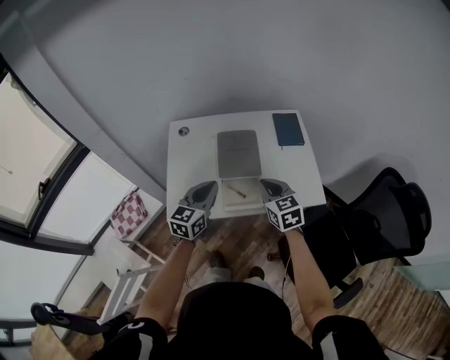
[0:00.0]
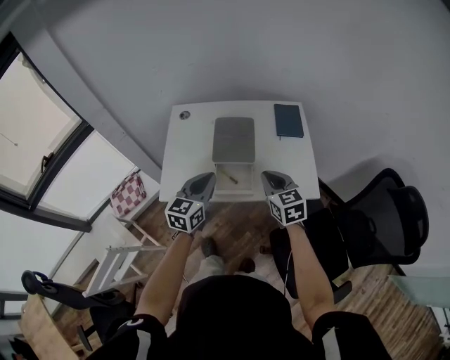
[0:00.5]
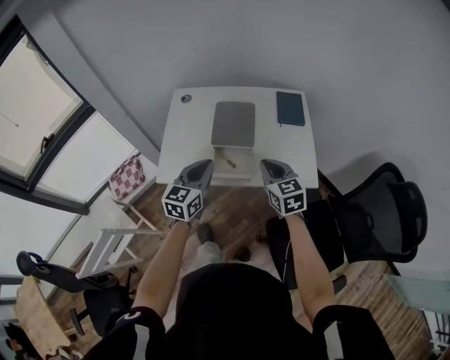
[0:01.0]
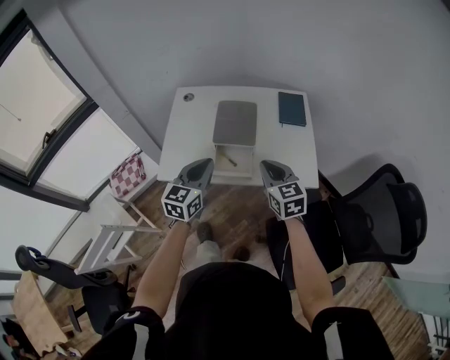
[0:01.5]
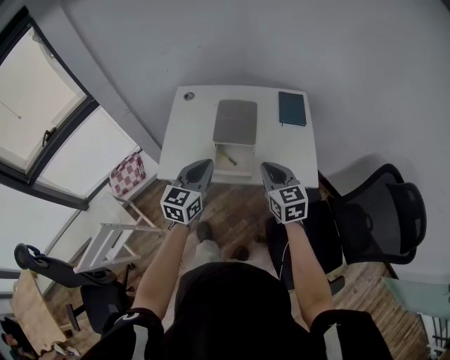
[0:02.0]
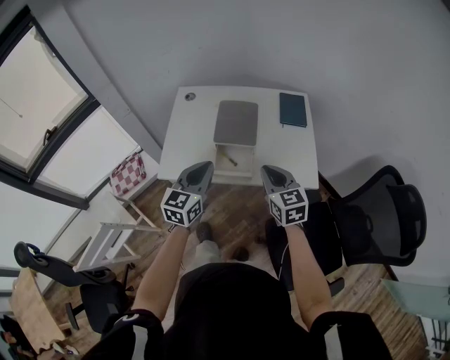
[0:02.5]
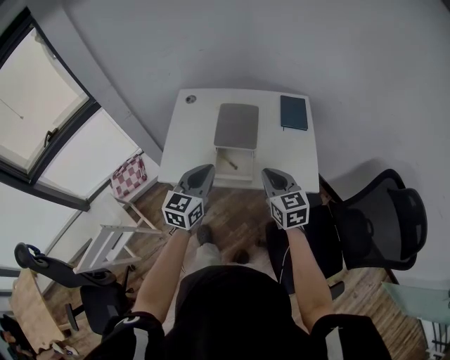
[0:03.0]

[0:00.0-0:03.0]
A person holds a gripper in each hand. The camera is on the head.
0:00.0 to 0:01.5: The left gripper goes some 10 cm backward, while the right gripper goes about 10 cm backward and to the right.
0:01.5 to 0:03.0: The grippers move only a little.

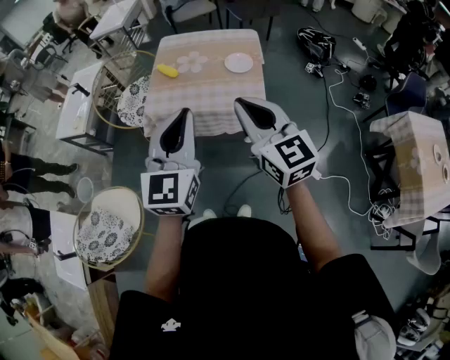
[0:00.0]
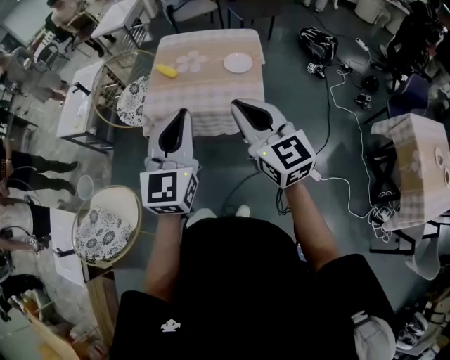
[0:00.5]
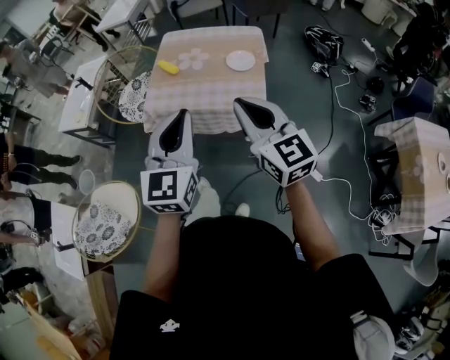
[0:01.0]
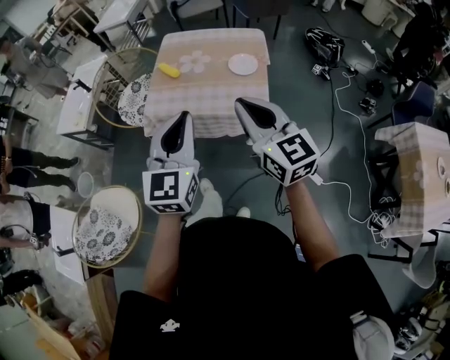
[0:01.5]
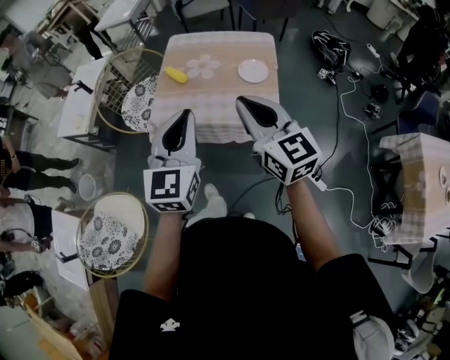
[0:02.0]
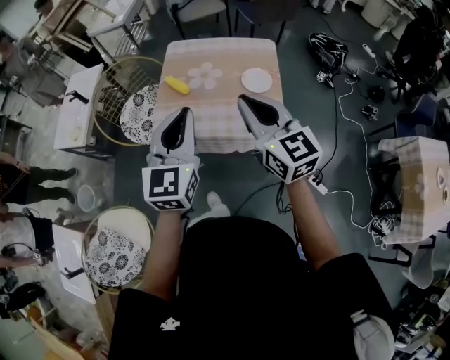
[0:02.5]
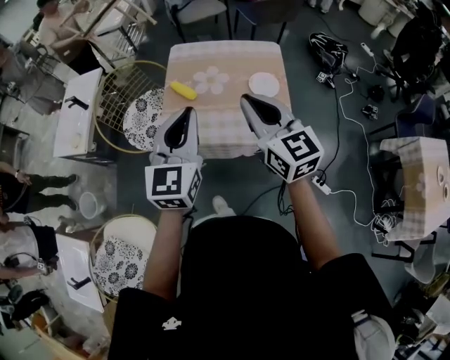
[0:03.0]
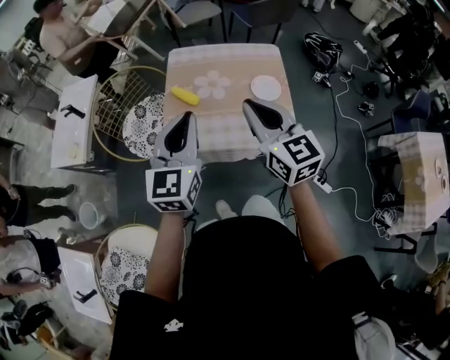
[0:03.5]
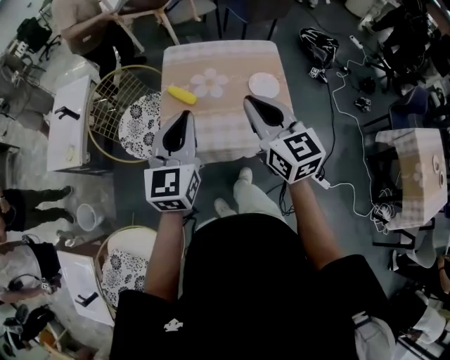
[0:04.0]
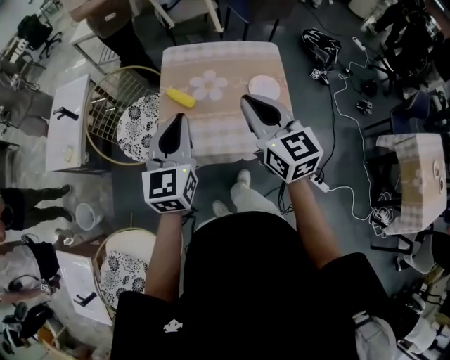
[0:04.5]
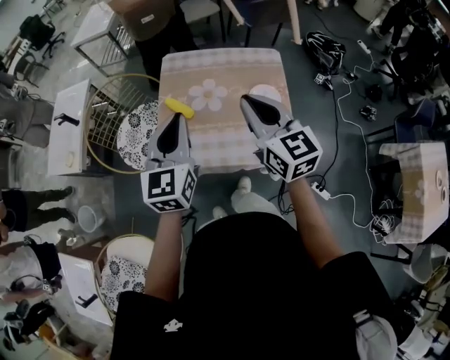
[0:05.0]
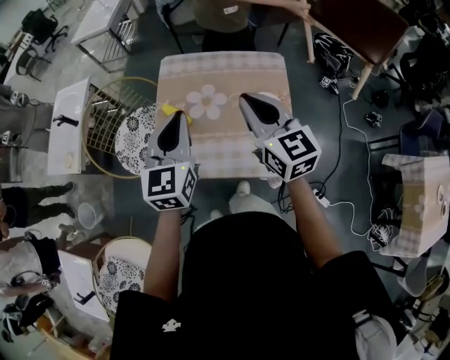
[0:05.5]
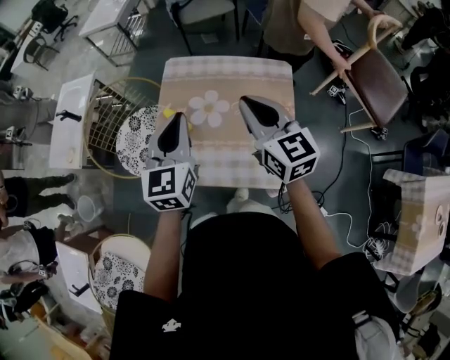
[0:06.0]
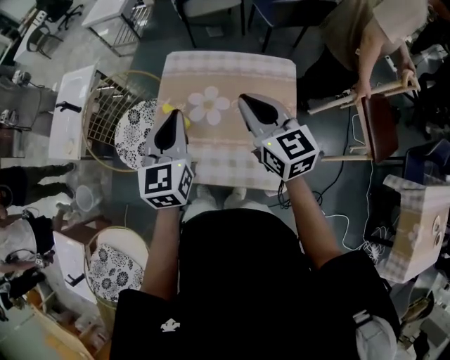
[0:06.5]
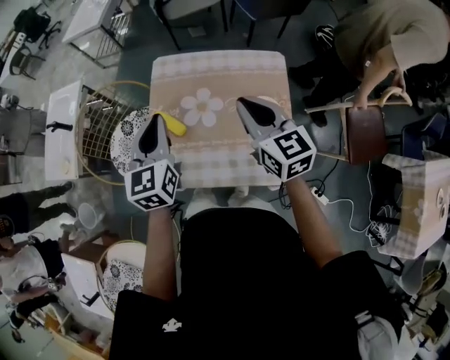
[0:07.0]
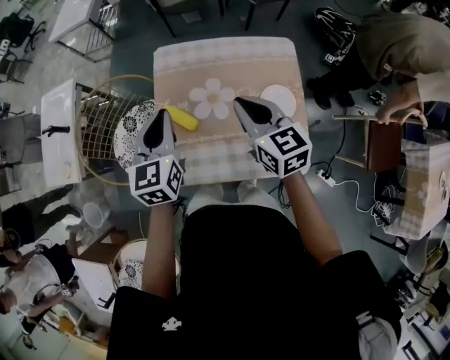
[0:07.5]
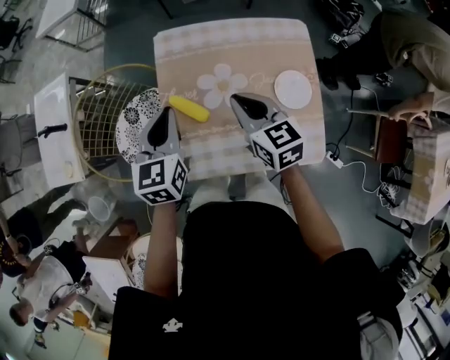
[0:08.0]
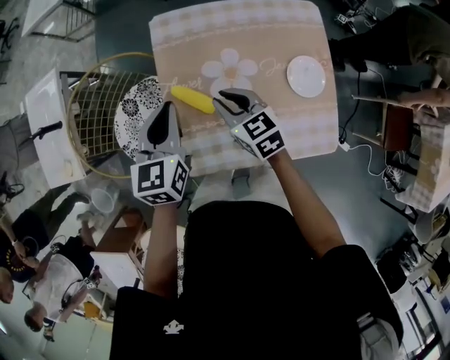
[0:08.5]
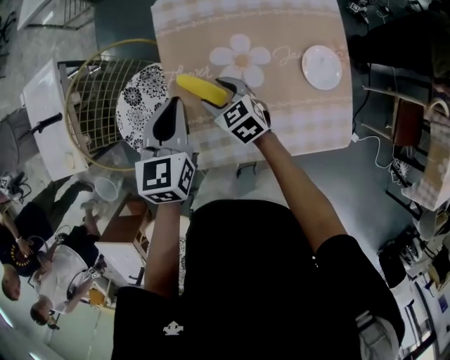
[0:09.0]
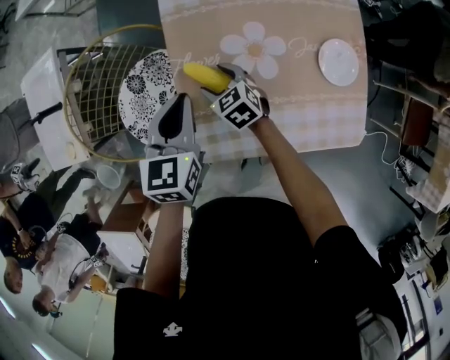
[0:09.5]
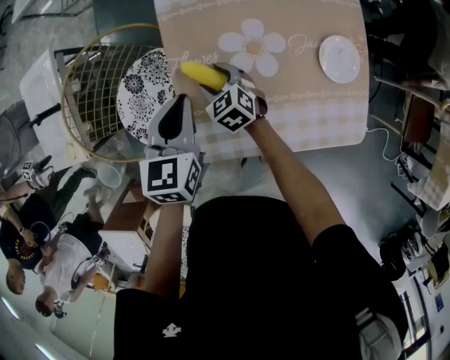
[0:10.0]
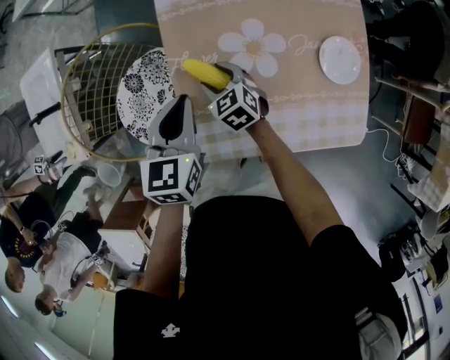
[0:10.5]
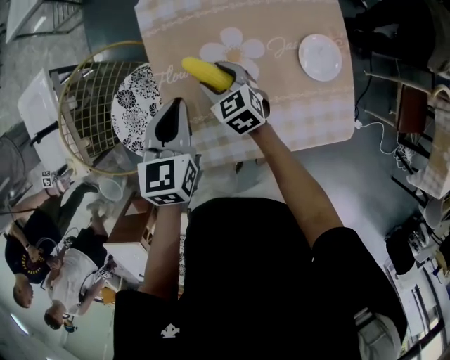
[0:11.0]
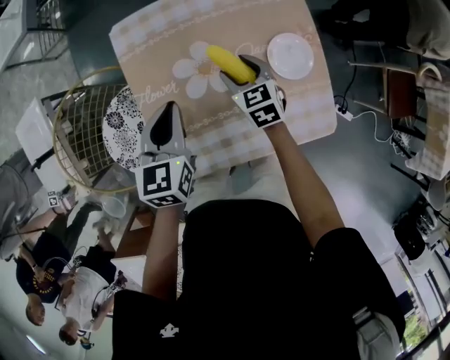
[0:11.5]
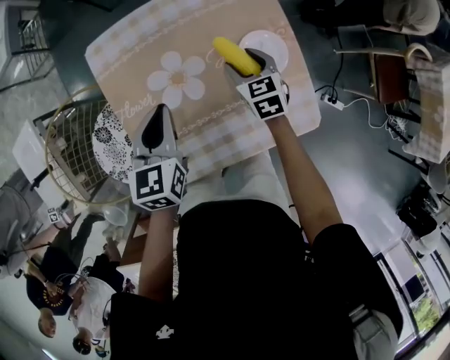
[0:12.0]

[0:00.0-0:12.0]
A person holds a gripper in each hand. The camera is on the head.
0:00.0 to 0:02.0: The two grippers go approximately 10 cm forward.
0:02.0 to 0:04.0: Both grippers move forward and to the left, about 20 cm.
0:04.0 to 0:06.0: Both grippers move forward and to the right, roughly 20 cm.
0:06.0 to 0:08.0: The left gripper heads downward, forward and to the left, covering approximately 20 cm. The right gripper heads downward, to the left and forward, covering roughly 20 cm, and turns by approximately 20 degrees.
0:08.0 to 0:10.0: The left gripper travels downward by some 10 cm, while the right gripper heads downward and to the left, covering approximately 30 cm, swivels approximately 30 degrees, and opens.
0:10.0 to 0:12.0: The left gripper travels to the right by roughly 15 cm, while the right gripper moves to the right, some 30 cm, and turns by approximately 30 degrees.

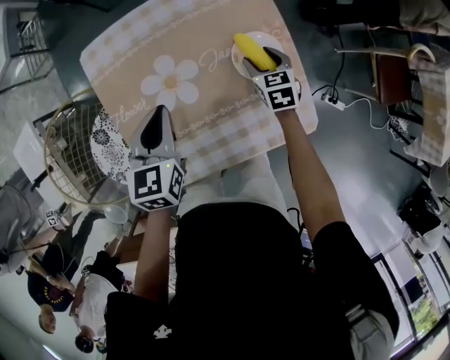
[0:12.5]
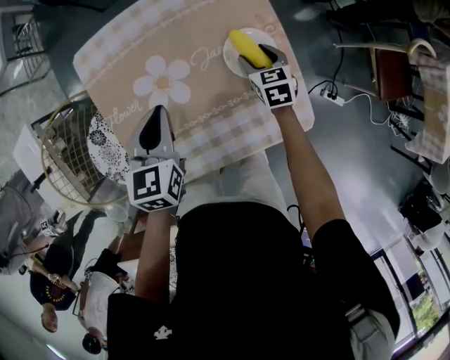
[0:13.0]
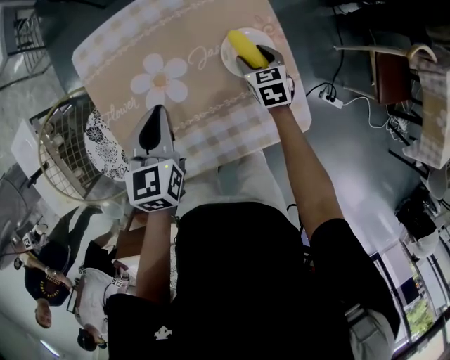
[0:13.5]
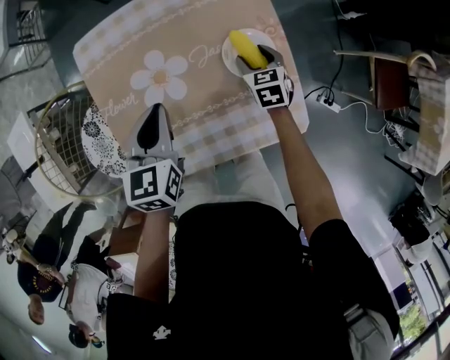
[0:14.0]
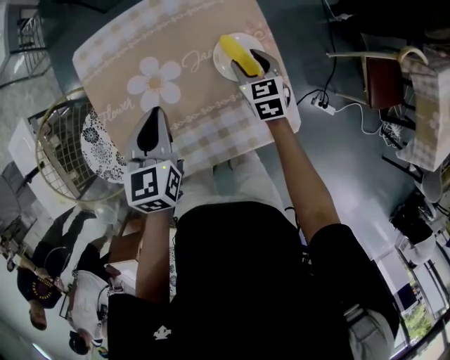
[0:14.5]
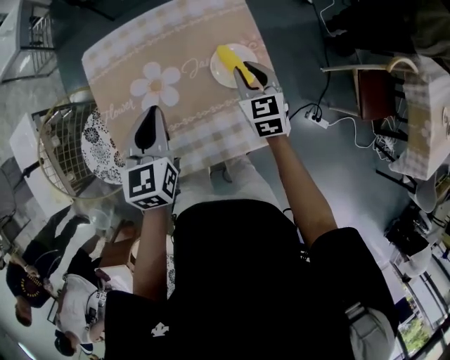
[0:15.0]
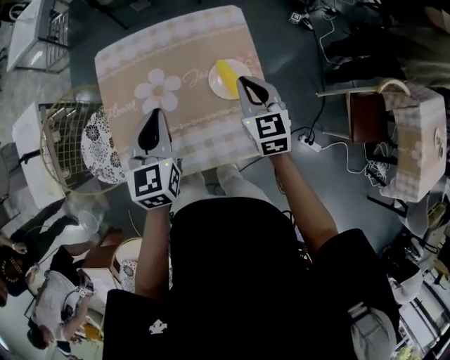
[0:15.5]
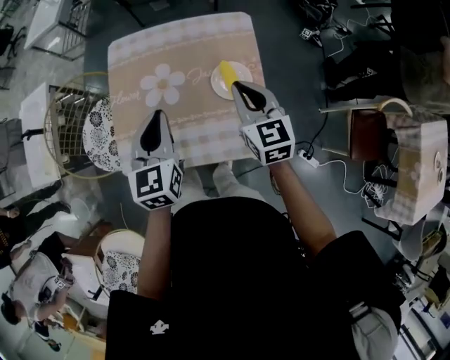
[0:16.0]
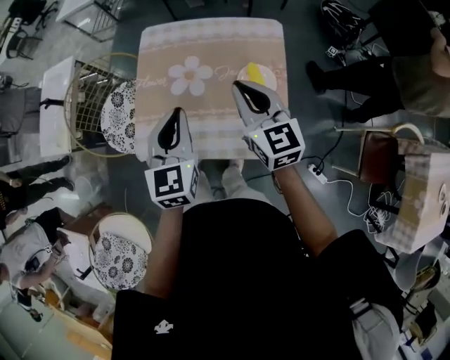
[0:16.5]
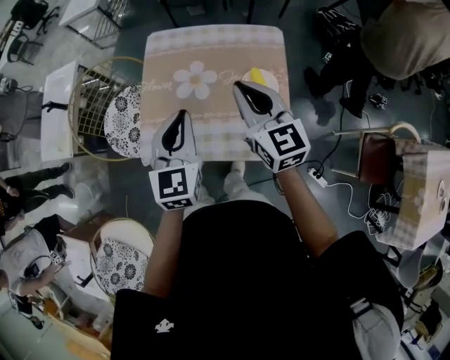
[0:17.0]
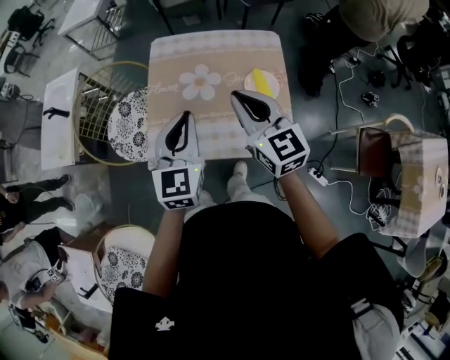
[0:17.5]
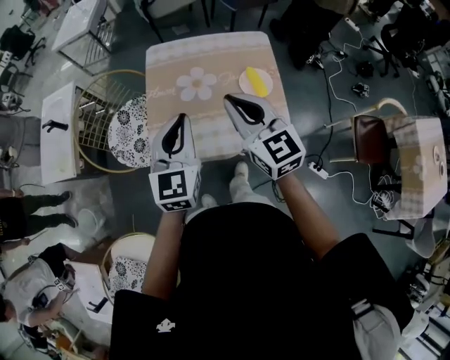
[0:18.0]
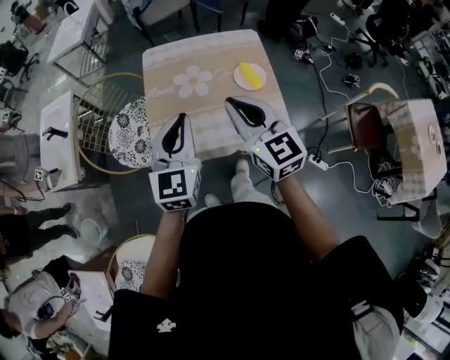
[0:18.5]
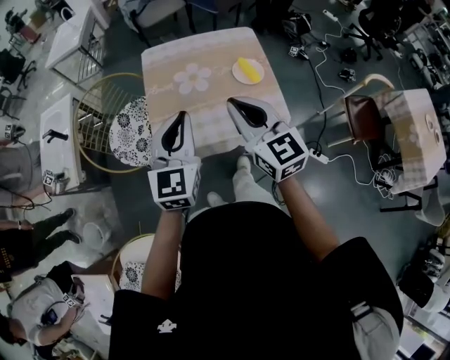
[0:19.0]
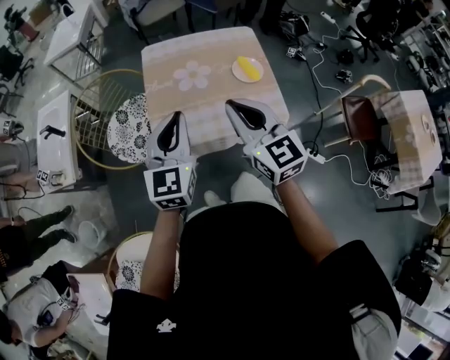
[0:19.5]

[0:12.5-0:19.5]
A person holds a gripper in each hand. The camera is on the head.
0:12.5 to 0:14.5: The grippers stay close to where they were, moving slightly.
0:14.5 to 0:16.0: The left gripper moves upward and backward, roughly 15 cm, and changes its angle by some 20 degrees. Meanwhile the right gripper travels upward by about 20 cm, rotates approximately 30 degrees, and closes its fingers.
0:16.0 to 0:17.5: The right gripper shifts some 20 cm to the left, upward and backward; the left gripper goes approximately 10 cm backward, to the left and upward.
0:17.5 to 0:19.5: The grippers both shift backward and to the left by approximately 15 cm.

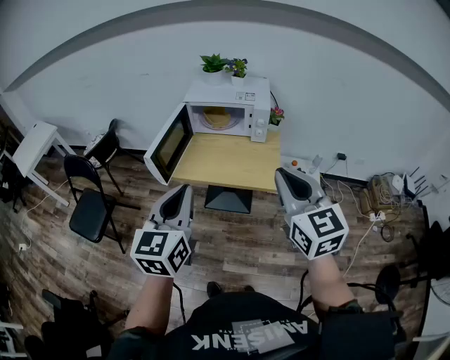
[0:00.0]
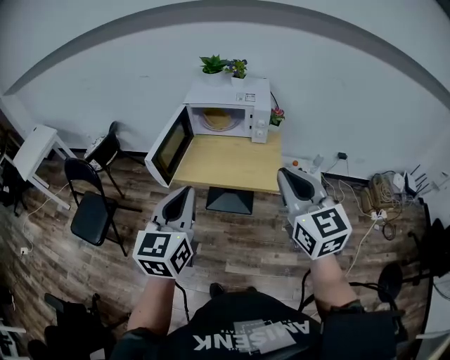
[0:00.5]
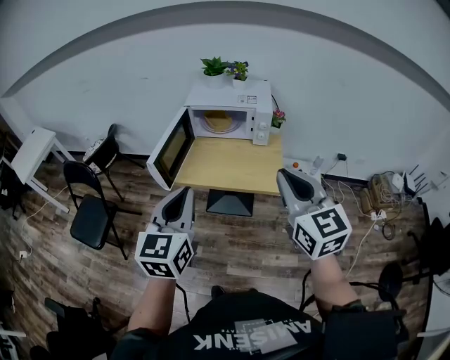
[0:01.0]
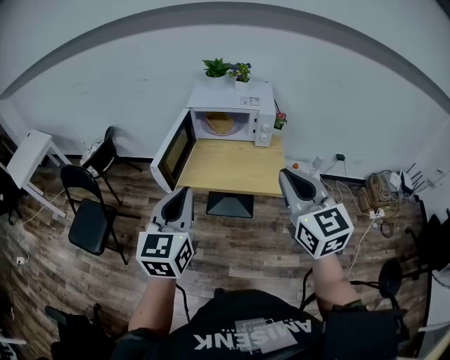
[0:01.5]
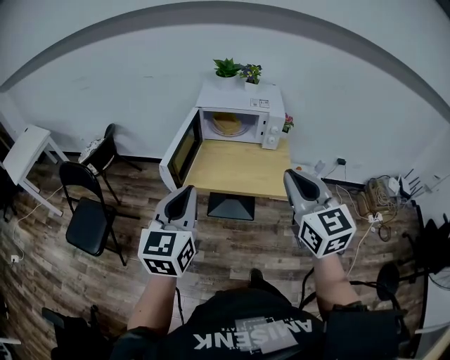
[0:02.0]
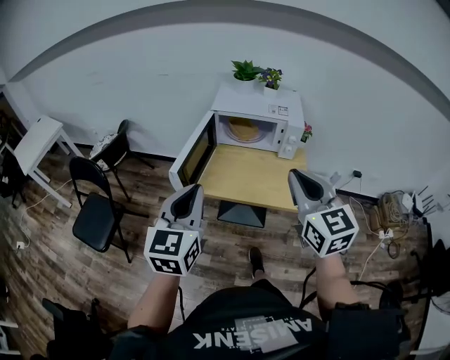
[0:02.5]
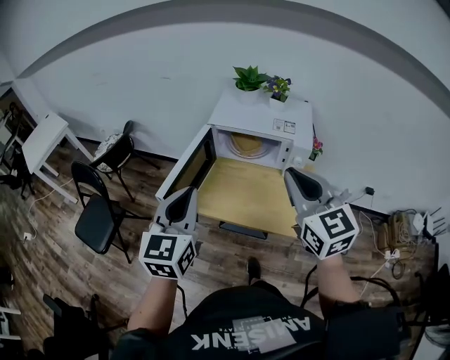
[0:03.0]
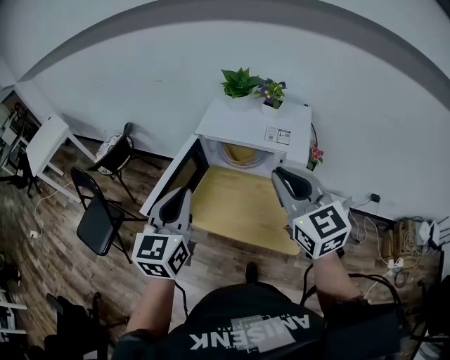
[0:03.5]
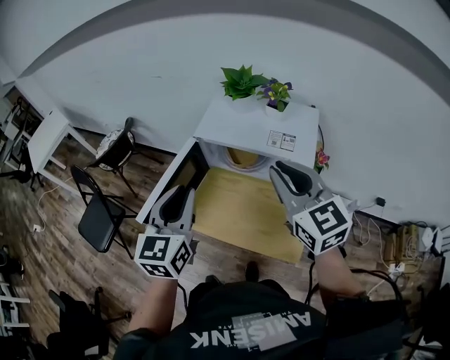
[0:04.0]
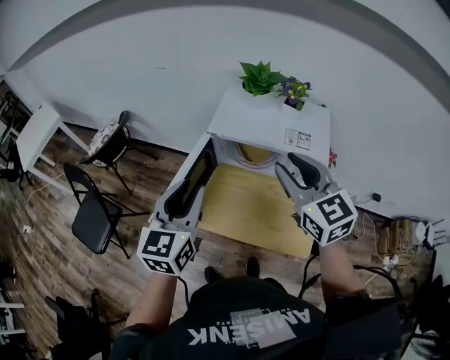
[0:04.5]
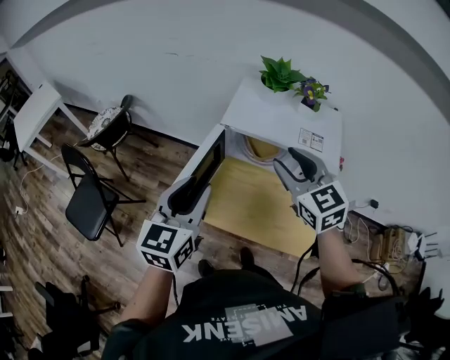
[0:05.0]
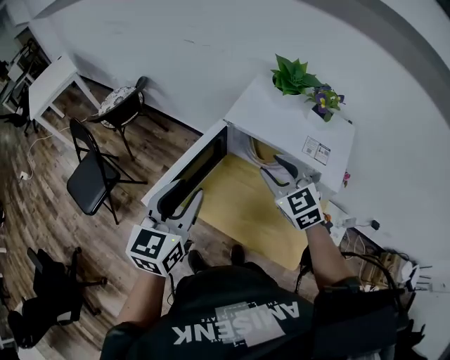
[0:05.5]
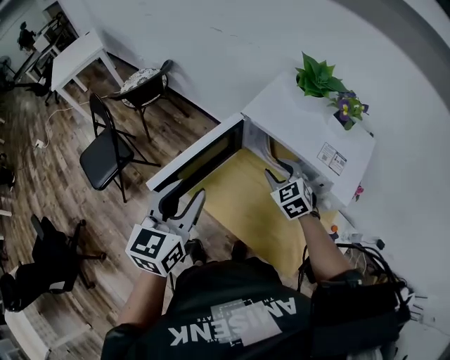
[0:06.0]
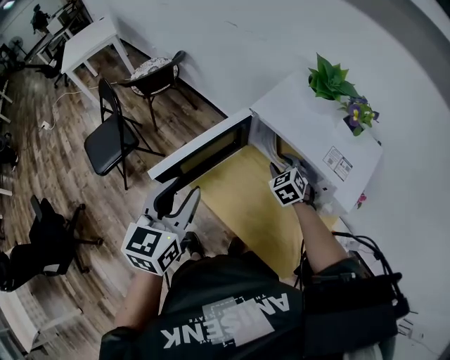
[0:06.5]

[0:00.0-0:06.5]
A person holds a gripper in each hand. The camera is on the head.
0:00.0 to 0:02.0: The grippers both shift to the left by approximately 10 cm.
0:02.0 to 0:04.5: The grippers both shift forward by roughly 35 cm. The right gripper opens its fingers. The left gripper opens its fingers.
0:04.5 to 0:06.5: The left gripper is displaced downward by some 5 cm, and rotates about 20 degrees; the right gripper moves downward and forward, about 35 cm, and points its fingers about 30 degrees further downward.
